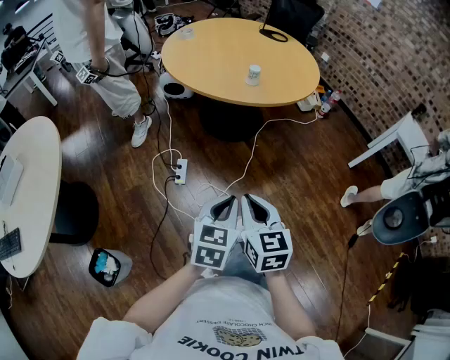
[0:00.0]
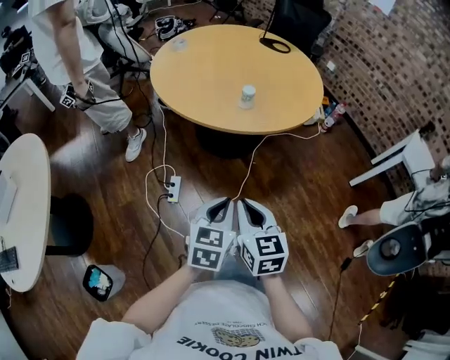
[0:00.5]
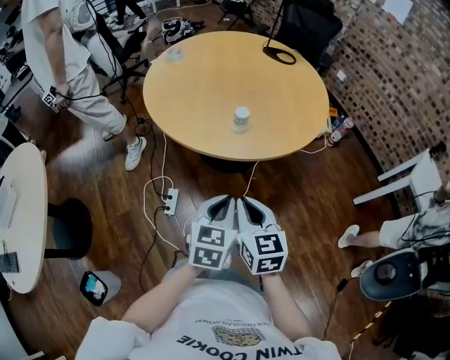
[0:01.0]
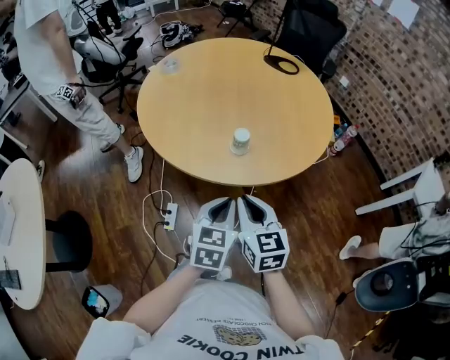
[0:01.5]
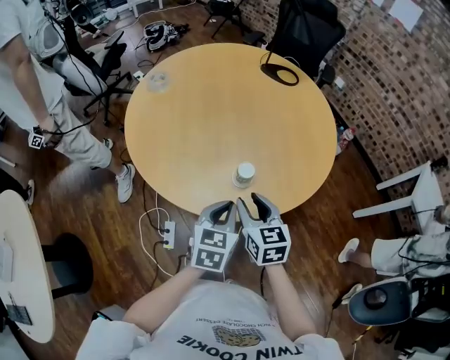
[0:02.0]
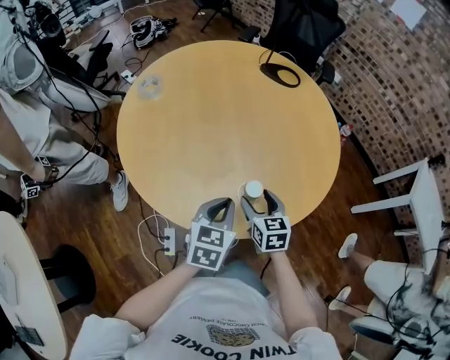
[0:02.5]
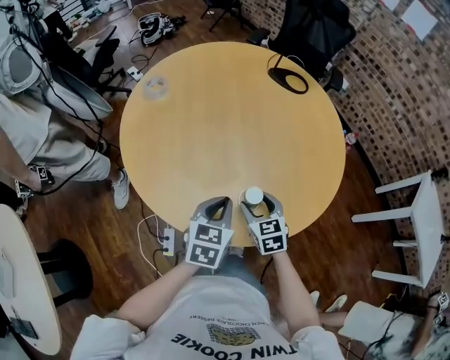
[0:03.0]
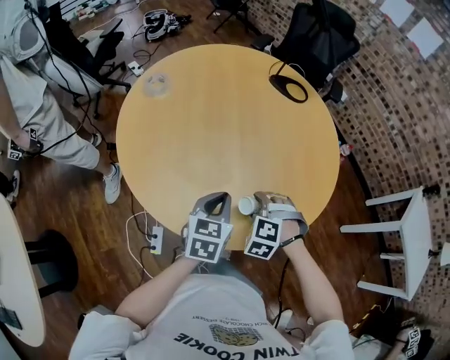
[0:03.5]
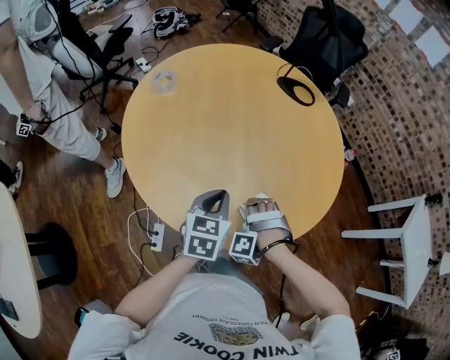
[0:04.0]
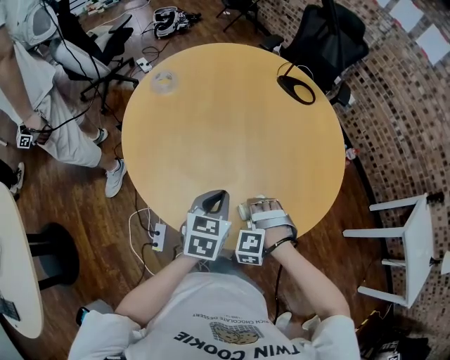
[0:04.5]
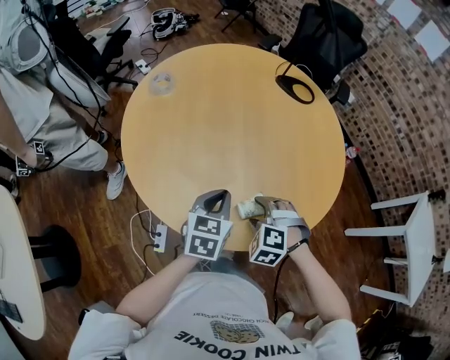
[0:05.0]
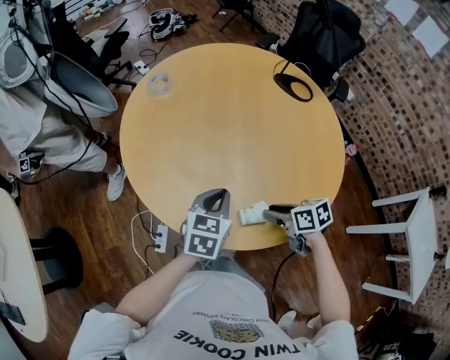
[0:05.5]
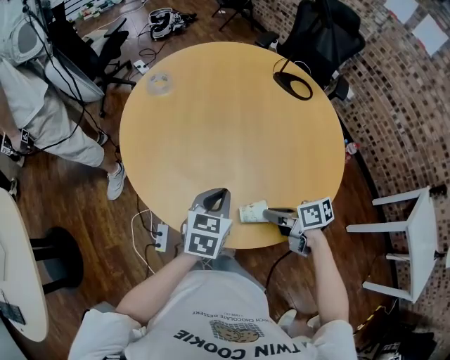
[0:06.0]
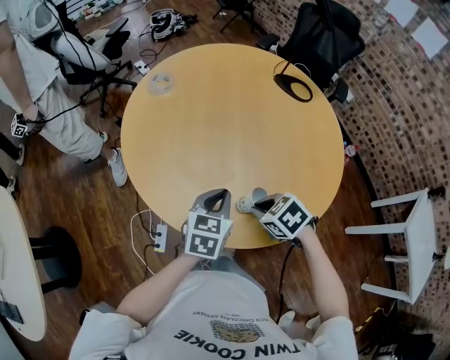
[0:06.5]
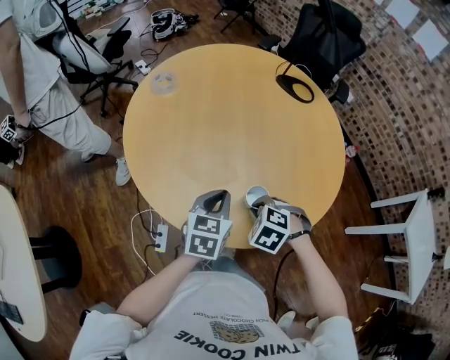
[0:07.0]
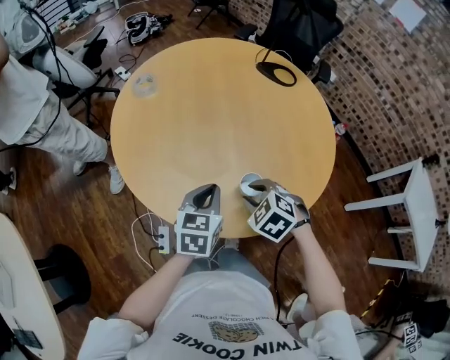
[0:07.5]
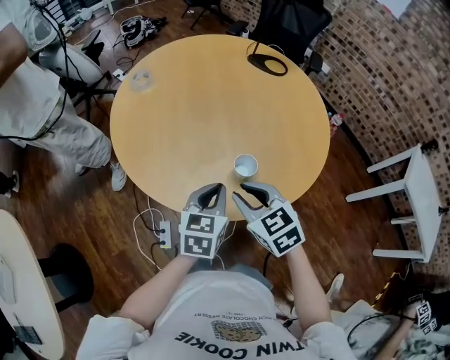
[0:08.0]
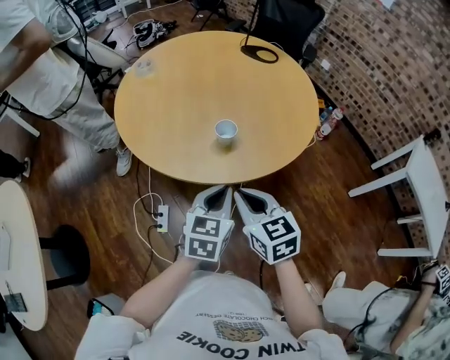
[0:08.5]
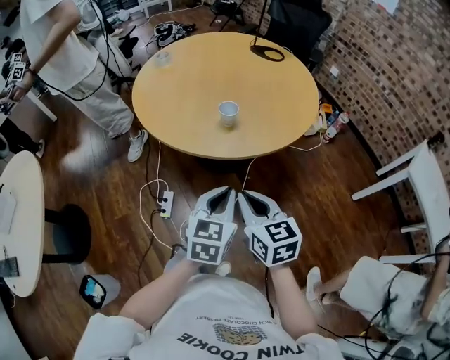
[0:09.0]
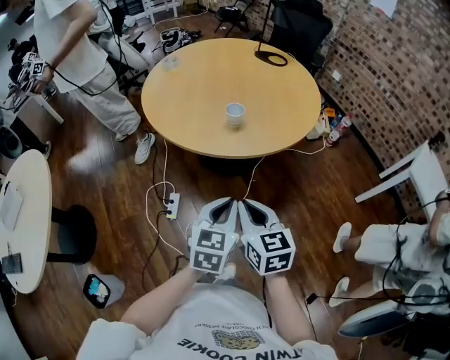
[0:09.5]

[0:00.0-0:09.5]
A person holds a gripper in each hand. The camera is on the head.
0:00.0 to 0:02.0: Both grippers are carried forward, approximately 50 cm. The right gripper opens.
0:02.0 to 0:04.0: The right gripper goes some 15 cm downward and forward, twists approximately 110 degrees counterclockwise, seen from behind, and opens up. Meanwhile the left gripper heads forward and to the left, covering roughly 15 cm.
0:04.0 to 0:05.5: The right gripper ends up about 5 cm from where it was, twists some 100 degrees clockwise, seen from behind, and closes its fingers.
0:05.5 to 0:07.5: The right gripper ends up about 10 cm from where it was, and twists about 50 degrees counterclockwise, seen from behind.
0:07.5 to 0:09.5: The grippers both shift backward by about 40 cm. The right gripper points its fingers roughly 40 degrees further upward, and closes.

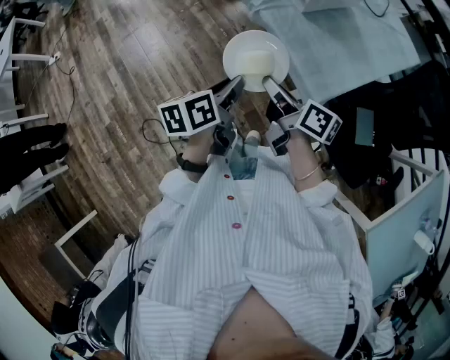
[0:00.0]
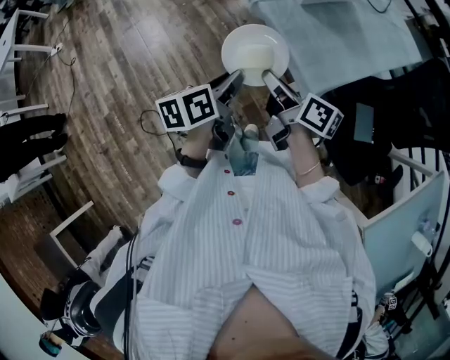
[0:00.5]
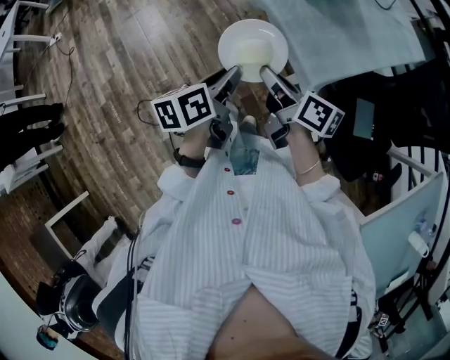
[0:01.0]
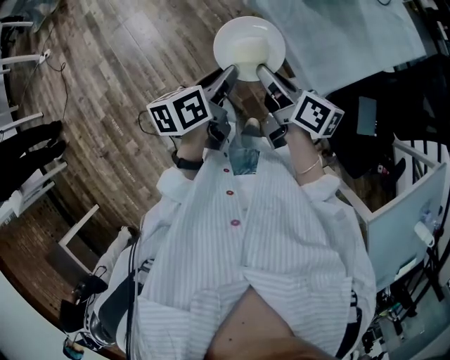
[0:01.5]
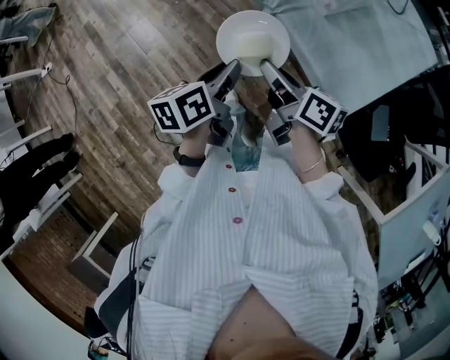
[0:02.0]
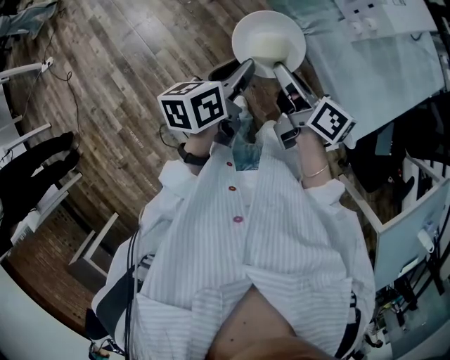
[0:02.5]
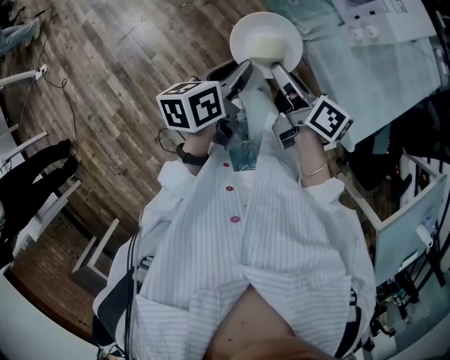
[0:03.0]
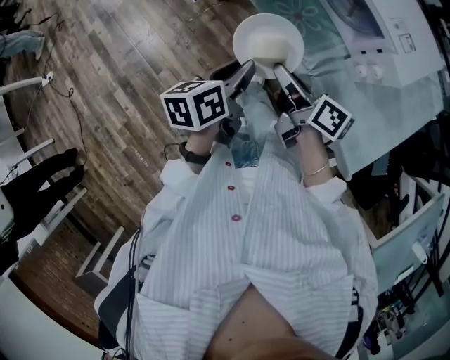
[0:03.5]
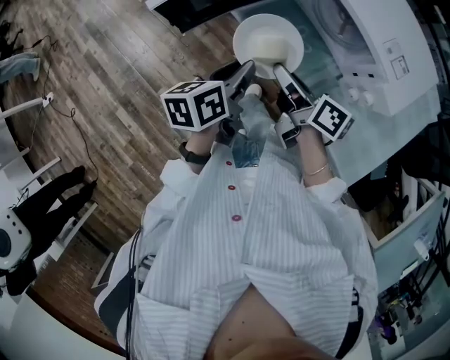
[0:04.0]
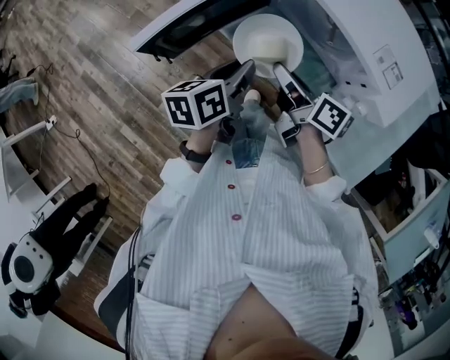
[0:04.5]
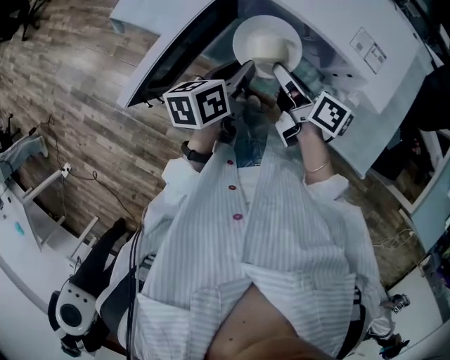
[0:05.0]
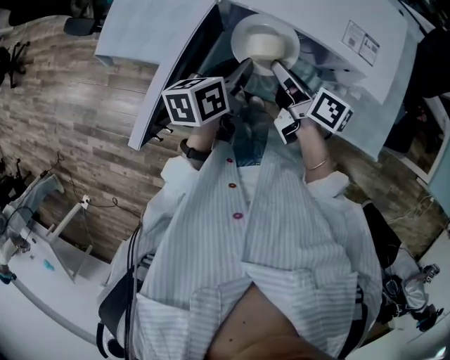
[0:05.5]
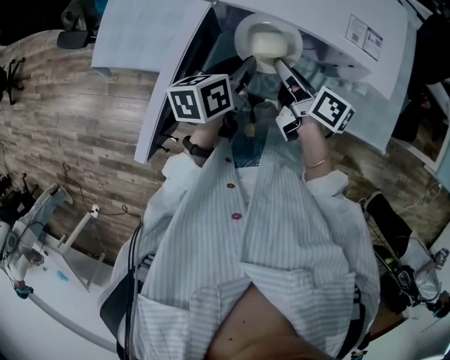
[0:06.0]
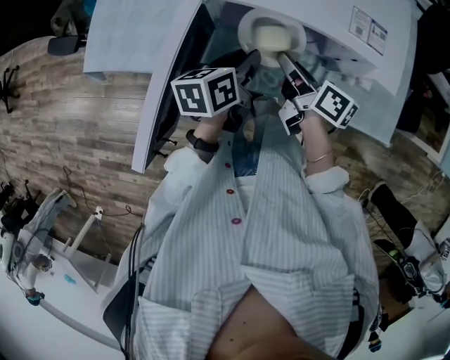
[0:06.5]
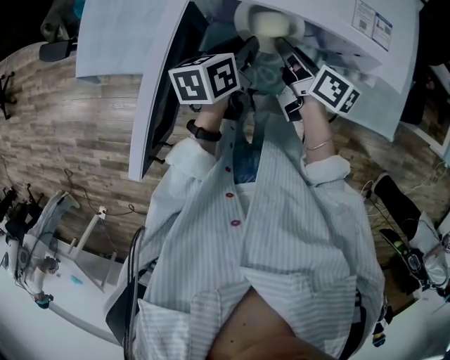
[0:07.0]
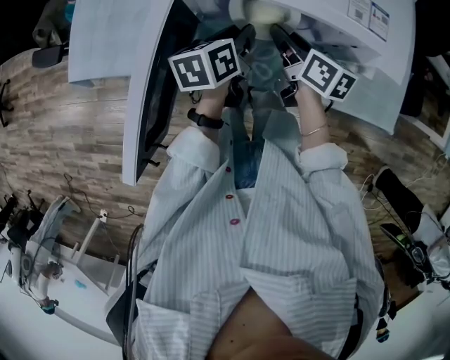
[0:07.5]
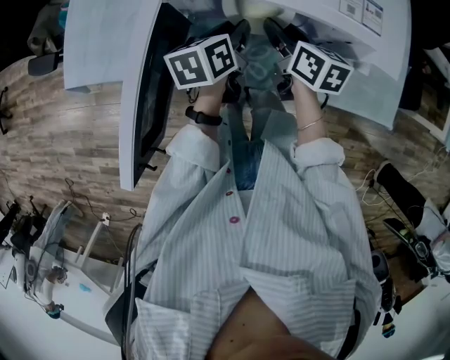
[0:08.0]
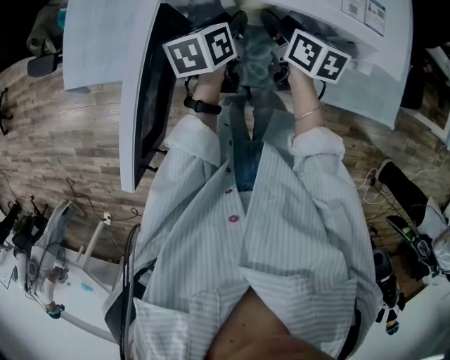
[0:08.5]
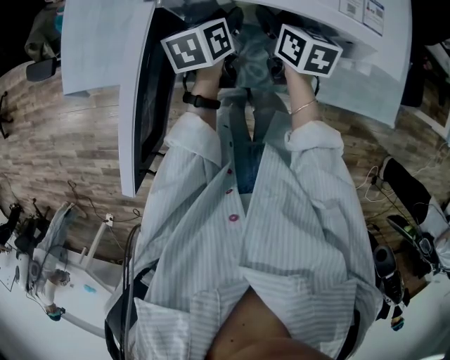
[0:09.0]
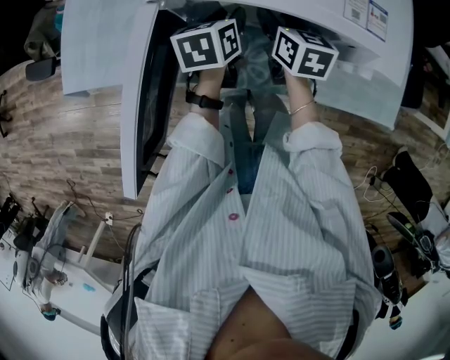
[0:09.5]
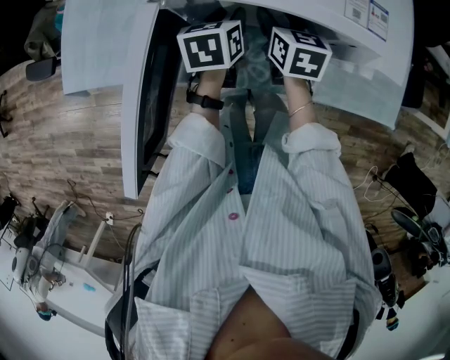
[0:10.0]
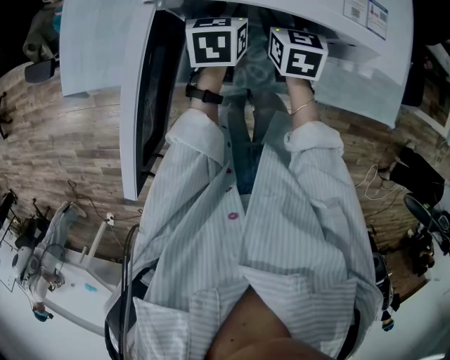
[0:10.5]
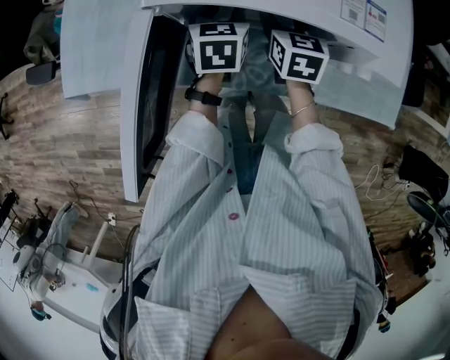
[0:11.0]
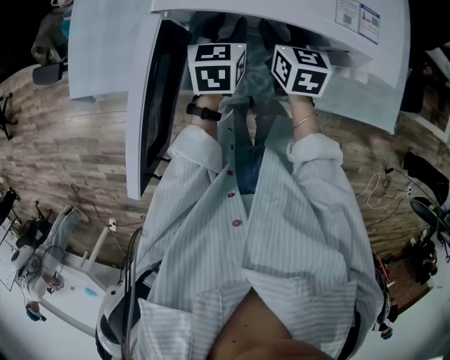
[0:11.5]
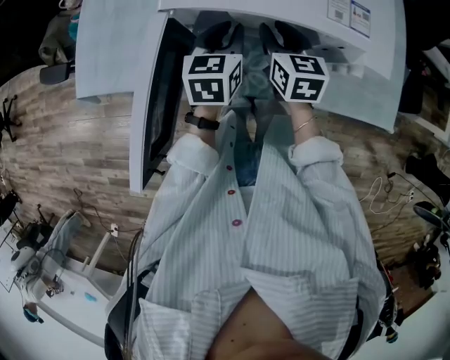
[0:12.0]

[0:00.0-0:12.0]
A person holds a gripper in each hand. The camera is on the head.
0:00.0 to 0:02.0: The two grippers go about 15 cm forward and to the left.
0:02.0 to 0:04.0: Both grippers travel together forward, about 30 cm.
0:04.0 to 0:06.0: The right gripper shifts by about 15 cm, and changes its angle by approximately 40 degrees. The left gripper ends up about 20 cm from where it was, and swivels about 40 degrees.
0:06.0 to 0:08.0: The right gripper travels forward and downward by approximately 10 cm, and turns by some 30 degrees. The left gripper shifts about 10 cm downward and forward.
0:08.0 to 0:10.0: The right gripper rotates about 20 degrees, and opens up.
0:10.0 to 0:12.0: The left gripper goes about 5 cm upward; the right gripper ends up some 5 cm from where it was, and closes.

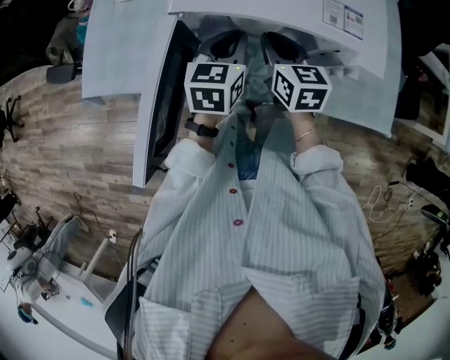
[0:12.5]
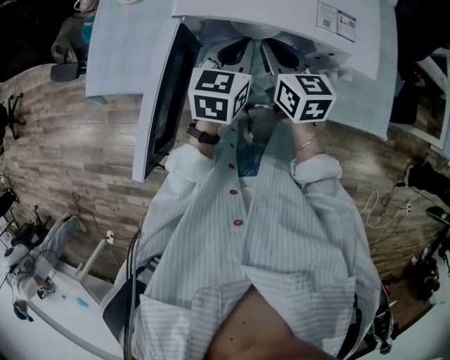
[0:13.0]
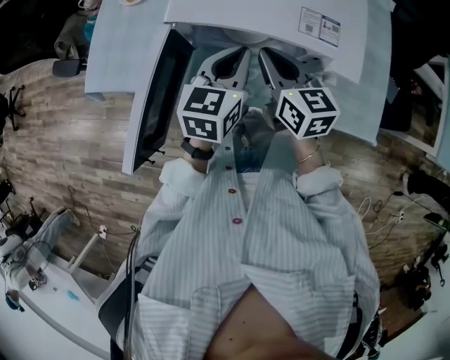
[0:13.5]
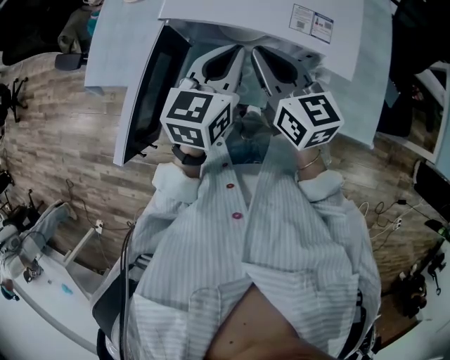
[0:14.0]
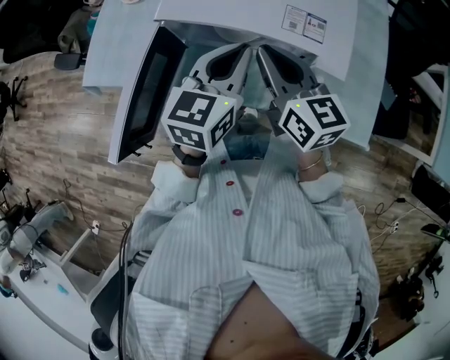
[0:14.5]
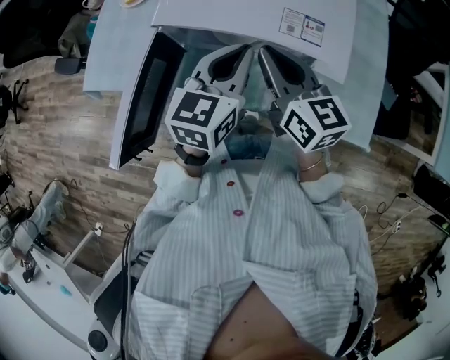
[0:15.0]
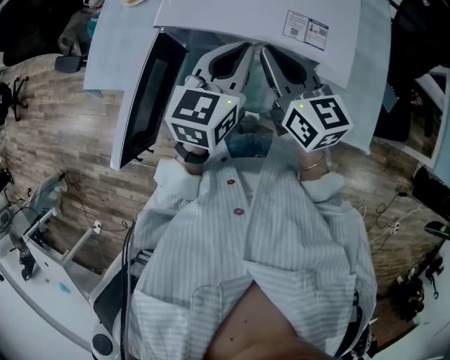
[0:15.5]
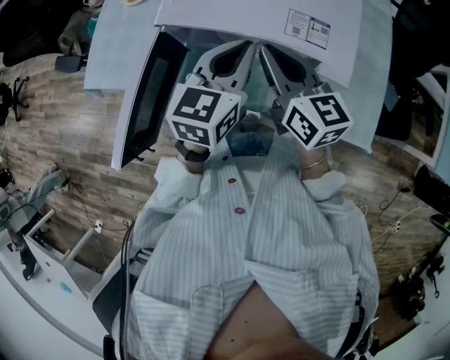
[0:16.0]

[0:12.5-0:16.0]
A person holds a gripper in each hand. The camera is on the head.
0:12.5 to 0:14.5: The left gripper moves upward, to the right and backward, some 15 cm, while the right gripper travels upward by about 15 cm, and turns by roughly 20 degrees.
0:14.5 to 0:16.0: The grippers make only small movements.

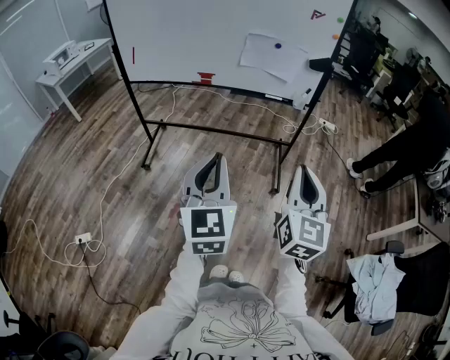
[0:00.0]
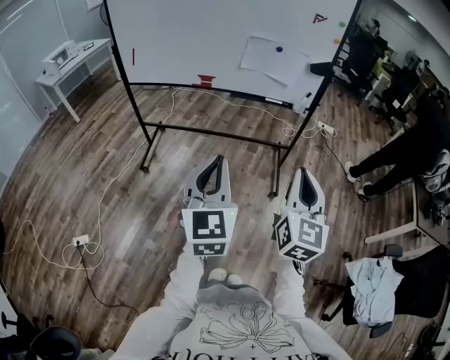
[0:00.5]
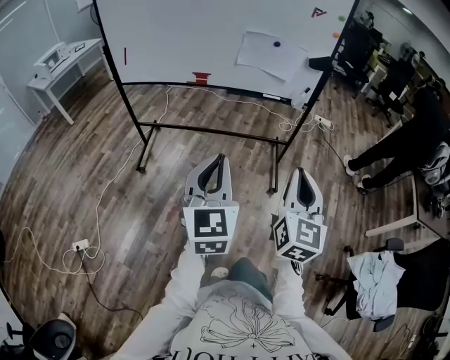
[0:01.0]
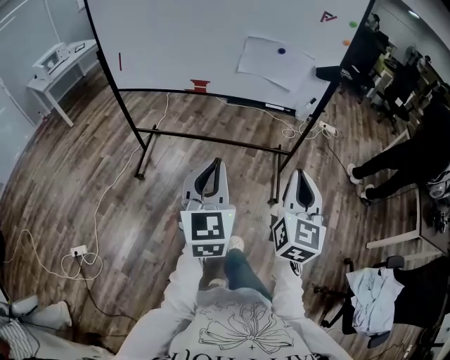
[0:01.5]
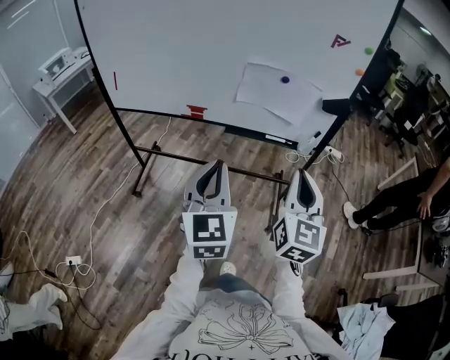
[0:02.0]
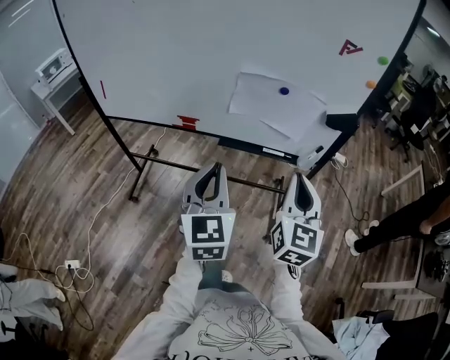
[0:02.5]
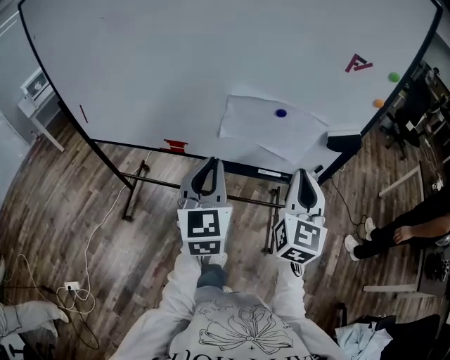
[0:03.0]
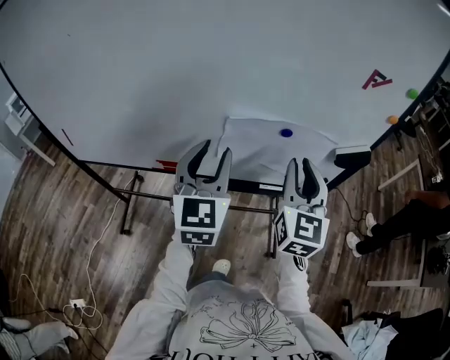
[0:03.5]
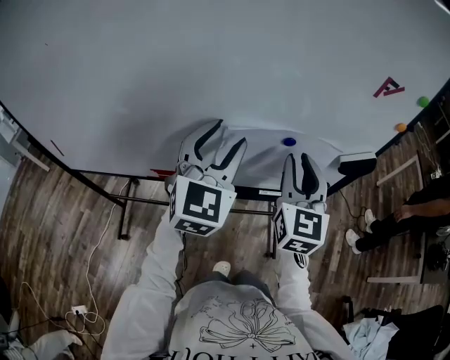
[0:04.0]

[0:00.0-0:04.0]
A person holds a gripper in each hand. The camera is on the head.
0:00.0 to 0:02.0: Both grippers move forward, roughly 30 cm.
0:02.0 to 0:04.0: The two grippers go some 40 cm forward. The right gripper opens its fingers. Meanwhile the left gripper swivels approximately 30 degrees, and opens its fingers.
